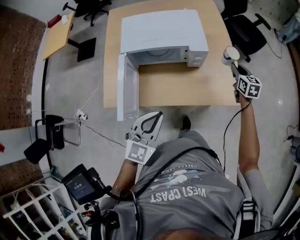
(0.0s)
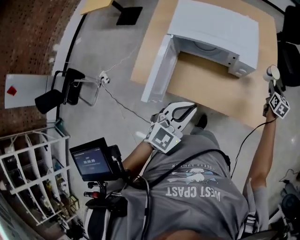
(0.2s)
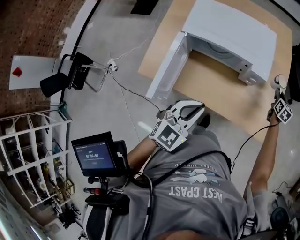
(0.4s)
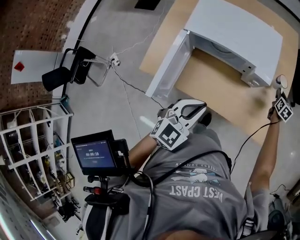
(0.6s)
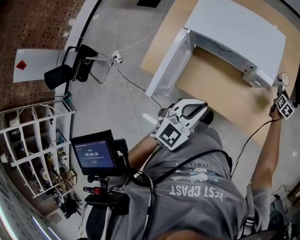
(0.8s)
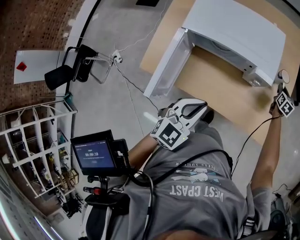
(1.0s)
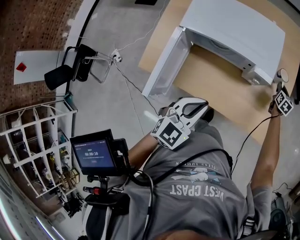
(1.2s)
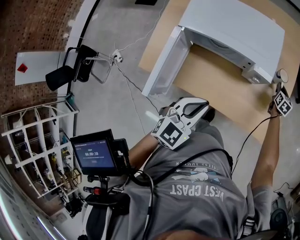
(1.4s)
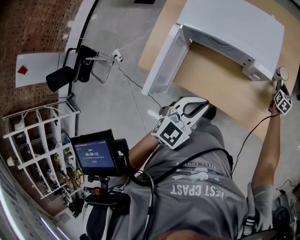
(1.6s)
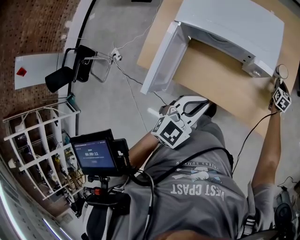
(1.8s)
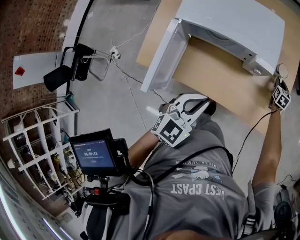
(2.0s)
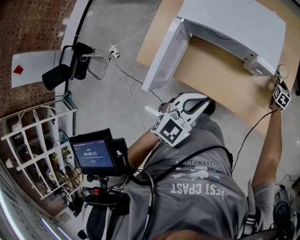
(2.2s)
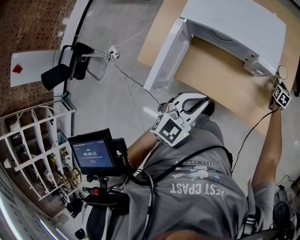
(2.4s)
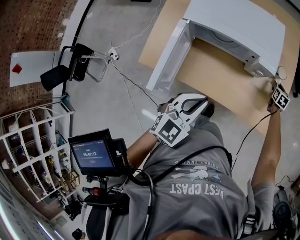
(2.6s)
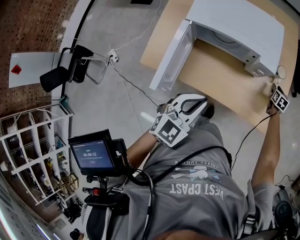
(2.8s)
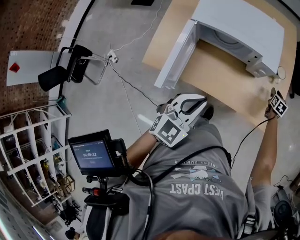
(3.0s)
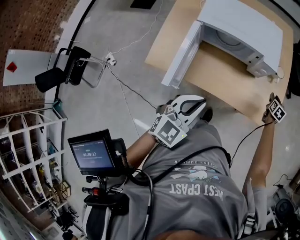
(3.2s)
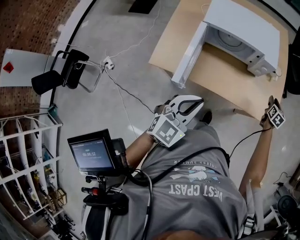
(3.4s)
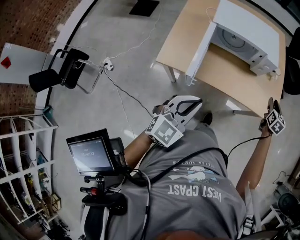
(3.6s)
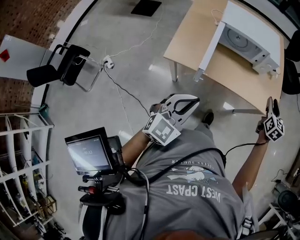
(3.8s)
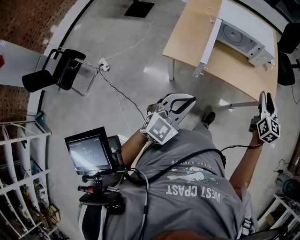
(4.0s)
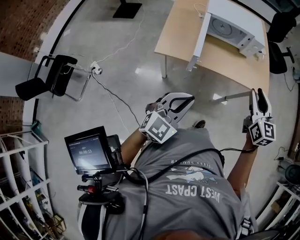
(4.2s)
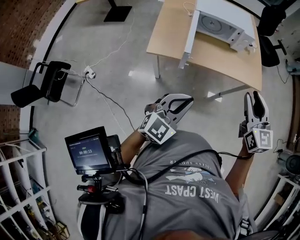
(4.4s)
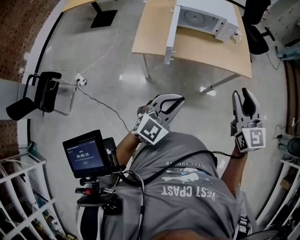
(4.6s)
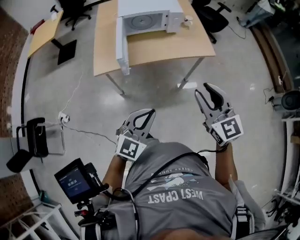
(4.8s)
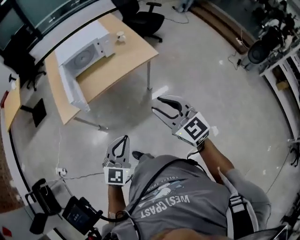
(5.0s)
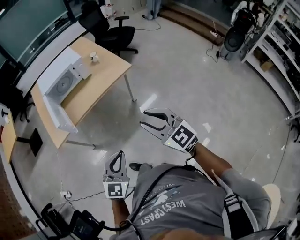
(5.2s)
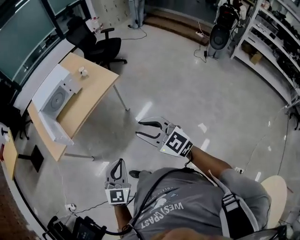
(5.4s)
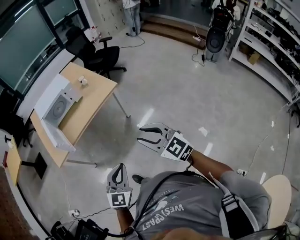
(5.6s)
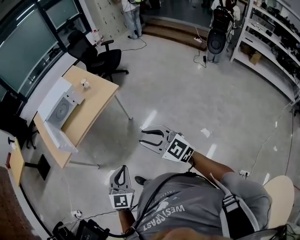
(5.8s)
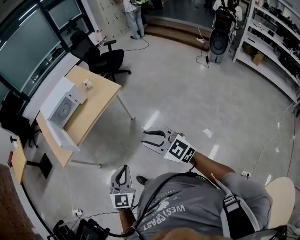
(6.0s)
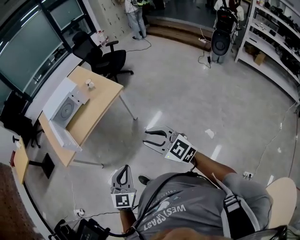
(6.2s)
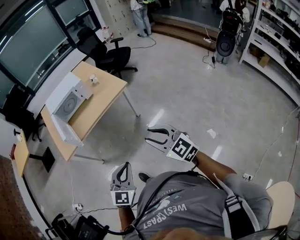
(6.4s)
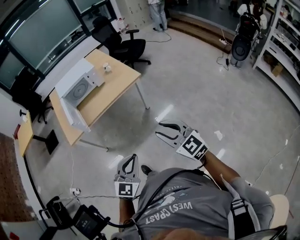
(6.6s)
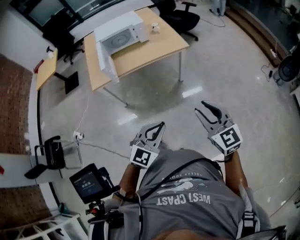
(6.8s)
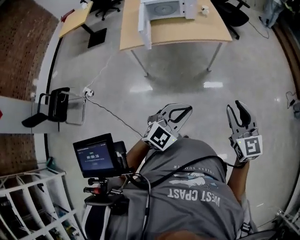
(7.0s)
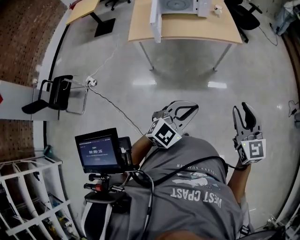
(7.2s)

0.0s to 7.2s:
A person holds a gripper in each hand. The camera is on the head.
0.0s to 1.4s: The left gripper is displaced forward and downward by about 15 cm. Meanwhile the right gripper moves downward and forward, approximately 30 cm.
1.4s to 2.8s: The two grippers go about 5 cm backward.
2.8s to 4.4s: The pair of grippers is taken backward, about 60 cm. The right gripper is displaced upward by approximately 40 cm, and angles its fingers upward, by roughly 40 degrees, while the left gripper changes its angle by approximately 20 degrees.
4.4s to 5.8s: The right gripper shifts approximately 40 cm backward and to the right. The left gripper shifts approximately 35 cm to the right and backward.
5.8s to 7.2s: The left gripper shifts by about 5 cm.

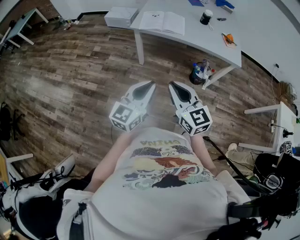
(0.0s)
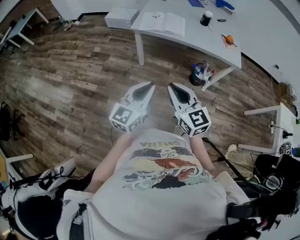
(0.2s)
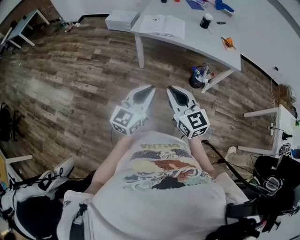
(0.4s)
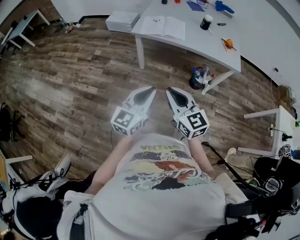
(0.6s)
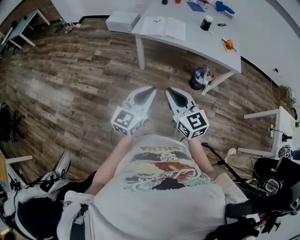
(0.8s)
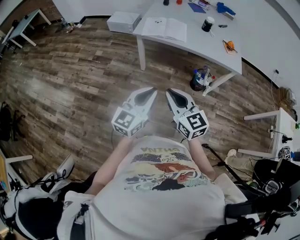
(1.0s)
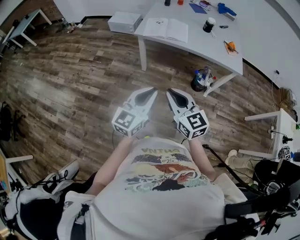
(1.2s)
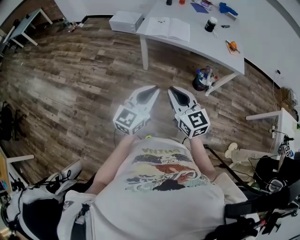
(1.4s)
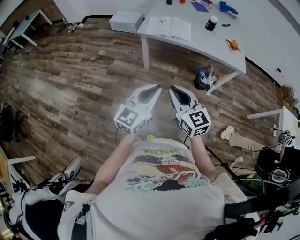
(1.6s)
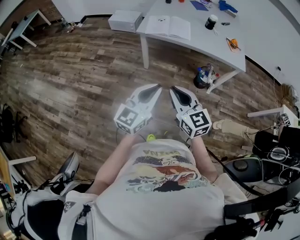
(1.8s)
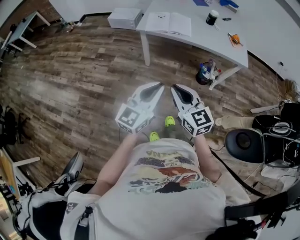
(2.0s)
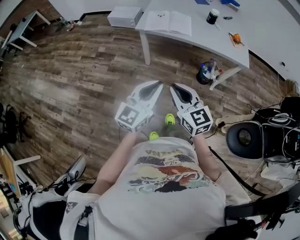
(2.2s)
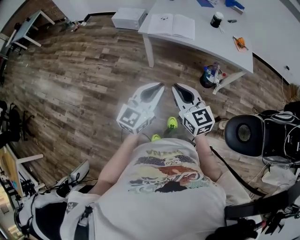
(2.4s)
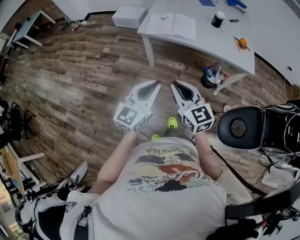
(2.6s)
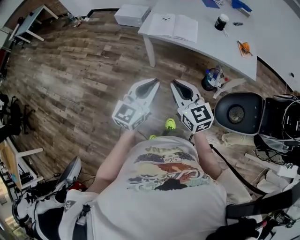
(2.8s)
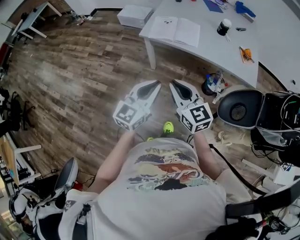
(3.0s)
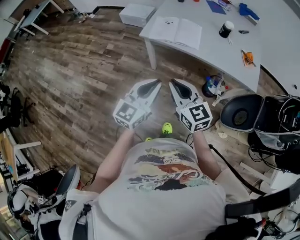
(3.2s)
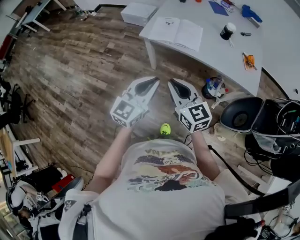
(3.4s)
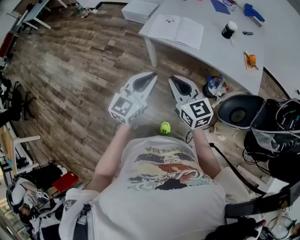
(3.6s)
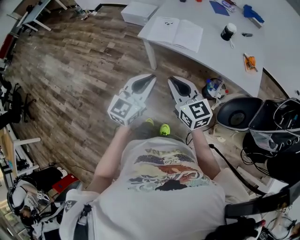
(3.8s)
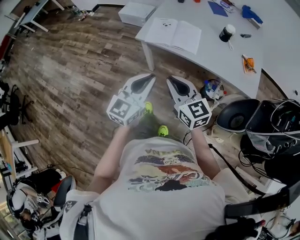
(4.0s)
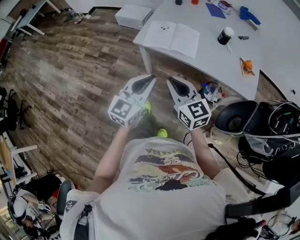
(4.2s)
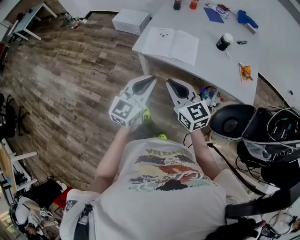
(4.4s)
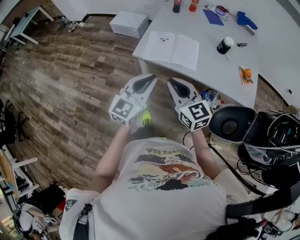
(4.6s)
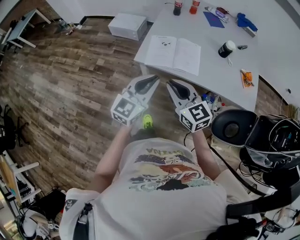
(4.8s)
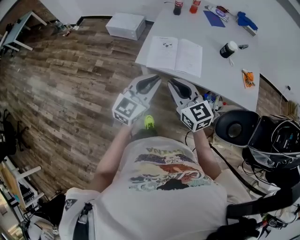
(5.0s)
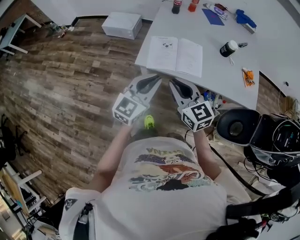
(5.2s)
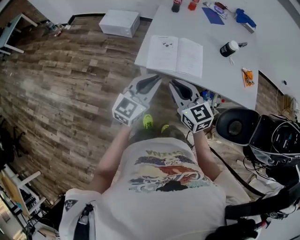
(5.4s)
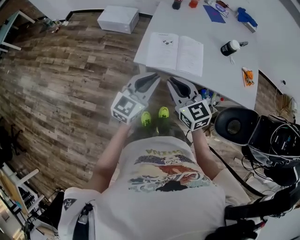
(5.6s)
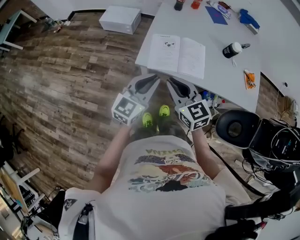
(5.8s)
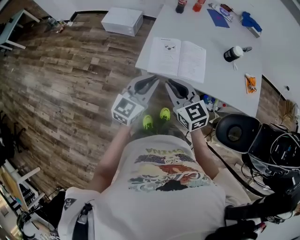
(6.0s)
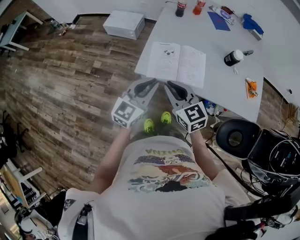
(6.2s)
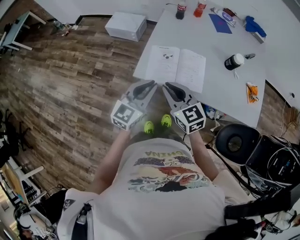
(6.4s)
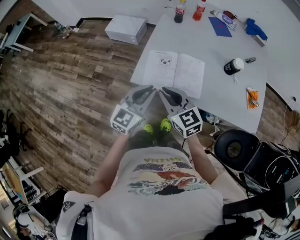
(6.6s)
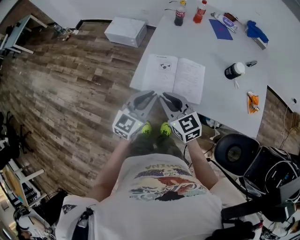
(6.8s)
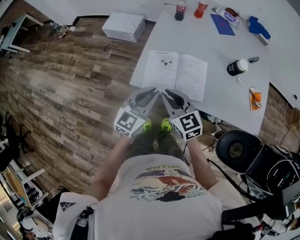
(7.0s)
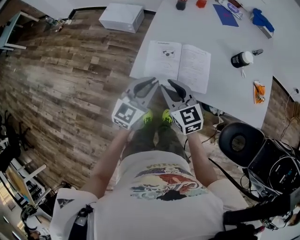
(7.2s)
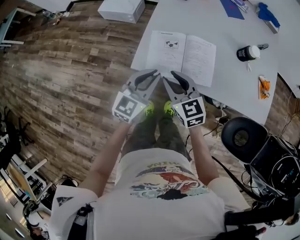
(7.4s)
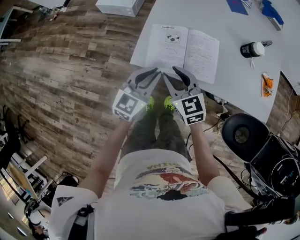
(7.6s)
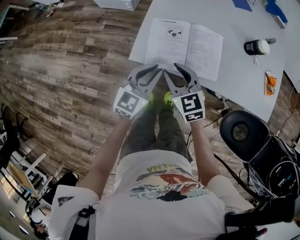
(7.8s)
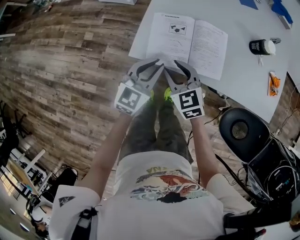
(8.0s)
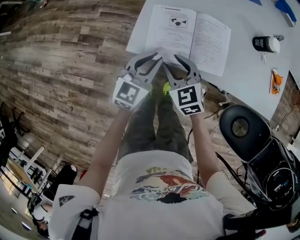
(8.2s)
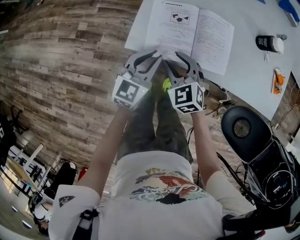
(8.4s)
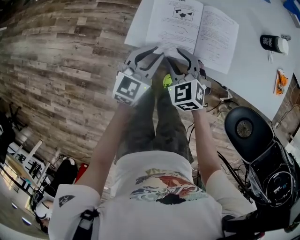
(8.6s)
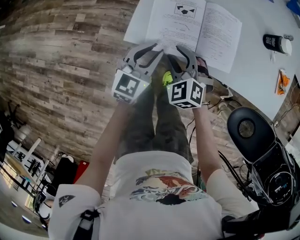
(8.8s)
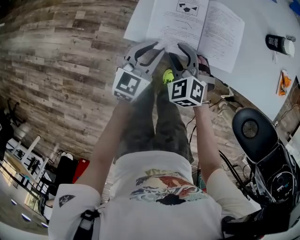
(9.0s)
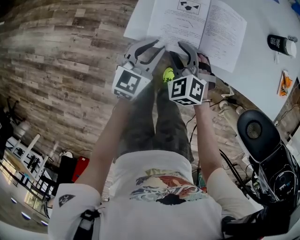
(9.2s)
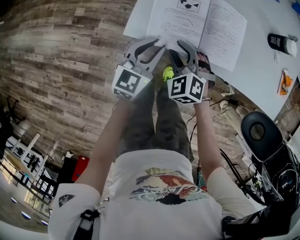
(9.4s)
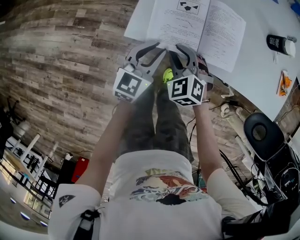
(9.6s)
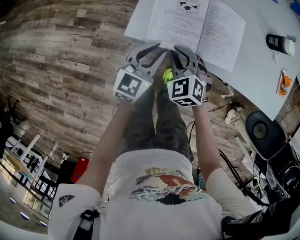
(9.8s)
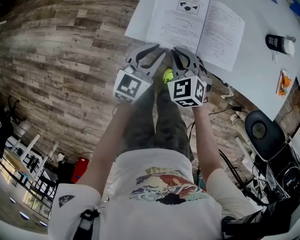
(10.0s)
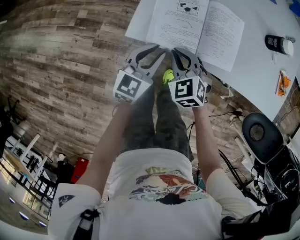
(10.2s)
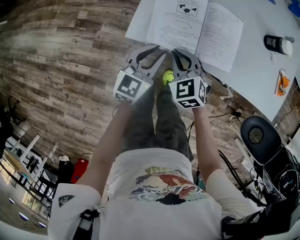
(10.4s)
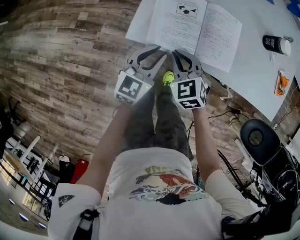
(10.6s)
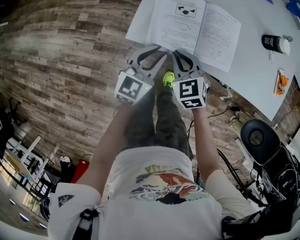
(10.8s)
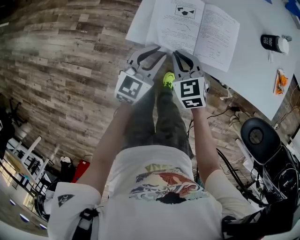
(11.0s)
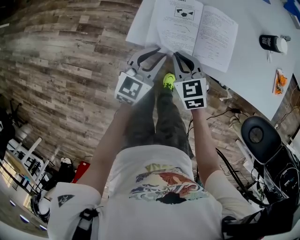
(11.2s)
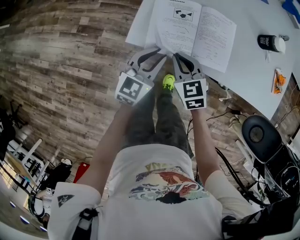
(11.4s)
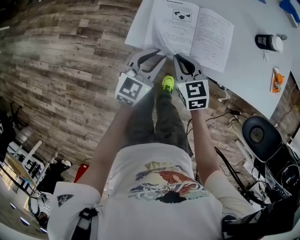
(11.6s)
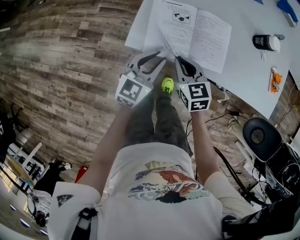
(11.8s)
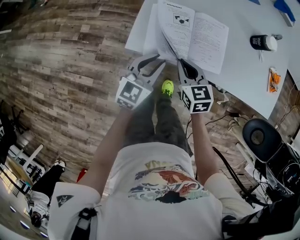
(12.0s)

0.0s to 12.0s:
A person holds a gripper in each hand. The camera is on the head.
0.0s to 1.6s: The right gripper moves about 5 cm.
1.6s to 3.0s: The grippers both shift forward by approximately 15 cm.
3.0s to 4.4s: Both grippers travel together forward, about 20 cm.
4.4s to 6.0s: The two grippers go about 25 cm forward and to the left.
6.0s to 7.6s: The grippers both shift downward and forward by approximately 15 cm. The right gripper opens its fingers.
7.6s to 9.0s: The two grippers go roughly 15 cm downward. The right gripper turns by roughly 40 degrees.
9.0s to 10.4s: The right gripper closes its fingers.
10.4s to 12.0s: The two grippers go about 5 cm upward. The right gripper changes its angle by some 30 degrees.

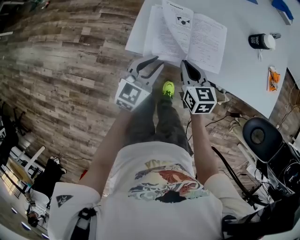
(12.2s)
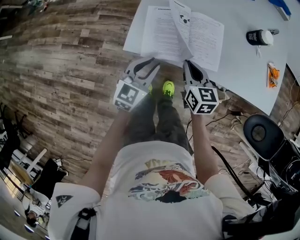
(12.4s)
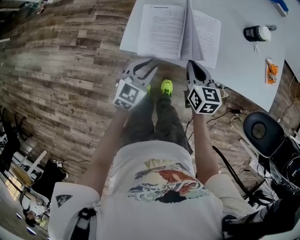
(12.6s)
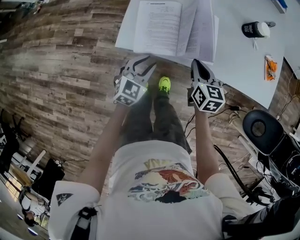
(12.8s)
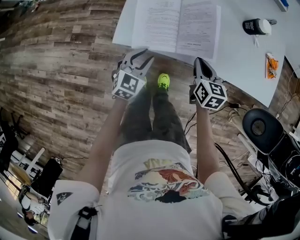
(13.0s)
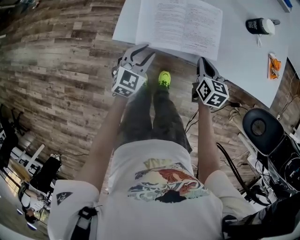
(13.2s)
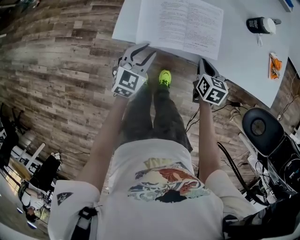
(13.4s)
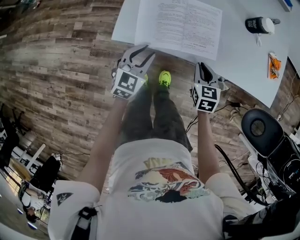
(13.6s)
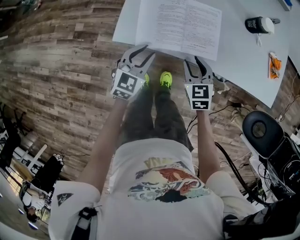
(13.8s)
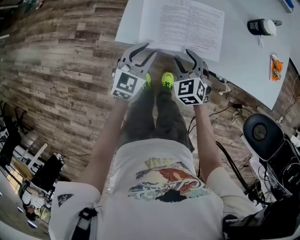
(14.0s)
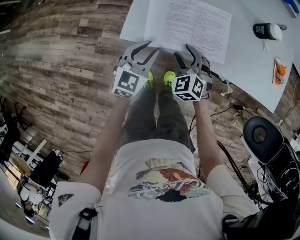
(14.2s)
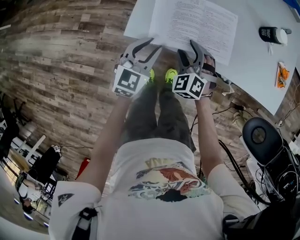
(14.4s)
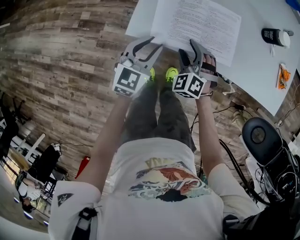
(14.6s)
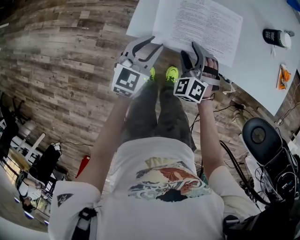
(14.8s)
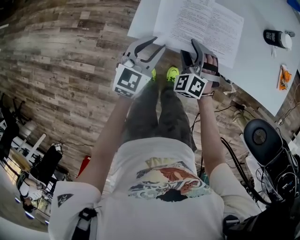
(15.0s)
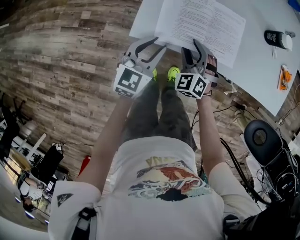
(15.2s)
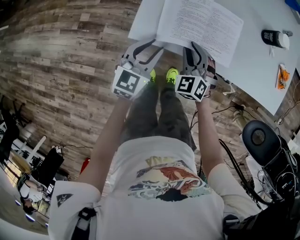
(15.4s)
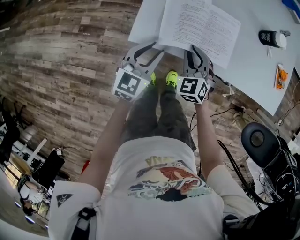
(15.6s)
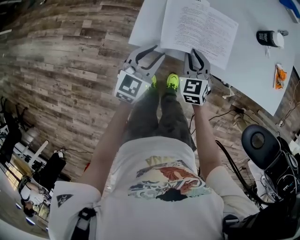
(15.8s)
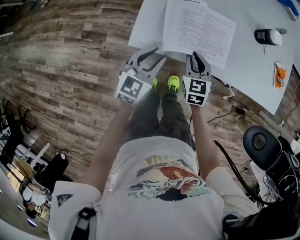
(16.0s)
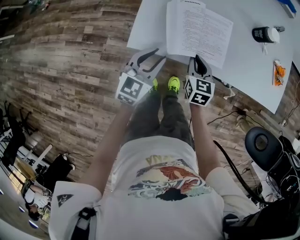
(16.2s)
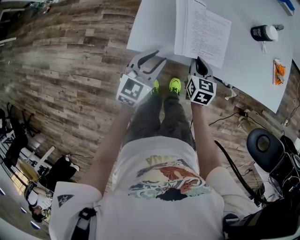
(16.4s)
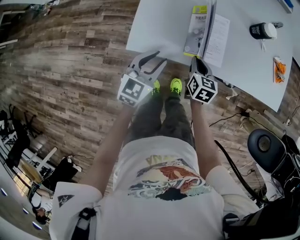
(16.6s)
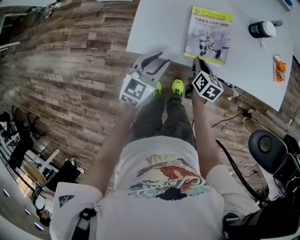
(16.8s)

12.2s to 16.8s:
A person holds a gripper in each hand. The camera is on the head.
12.2s to 13.8s: The right gripper travels to the right by some 10 cm, changes its angle by some 20 degrees, and opens. Meanwhile the left gripper heads downward, covering about 5 cm.
13.8s to 15.2s: The right gripper goes roughly 10 cm to the left, changes its angle by some 40 degrees, and opens up, while the left gripper heads to the left, covering some 5 cm.
15.2s to 16.8s: The right gripper goes about 10 cm to the right, twists roughly 80 degrees clockwise, seen from behind, and closes, while the left gripper is displaced to the right by roughly 5 cm.
